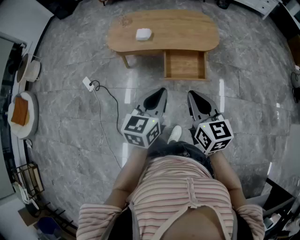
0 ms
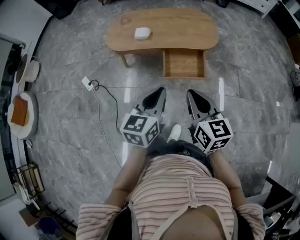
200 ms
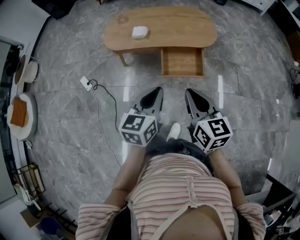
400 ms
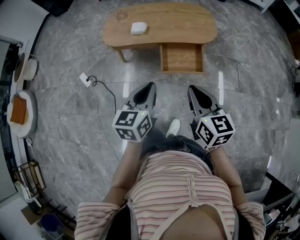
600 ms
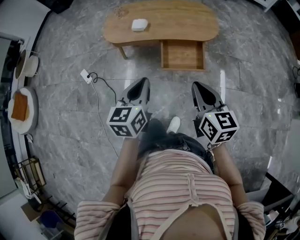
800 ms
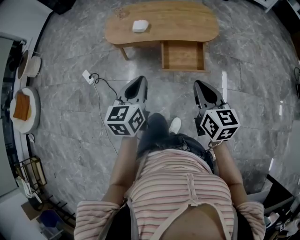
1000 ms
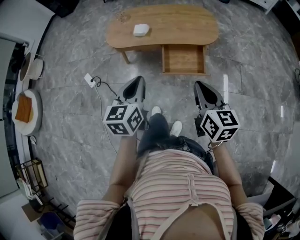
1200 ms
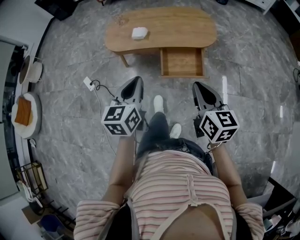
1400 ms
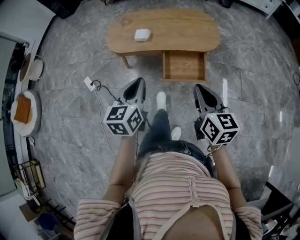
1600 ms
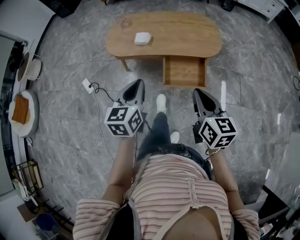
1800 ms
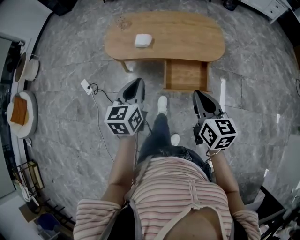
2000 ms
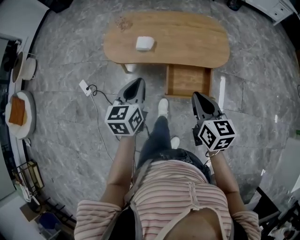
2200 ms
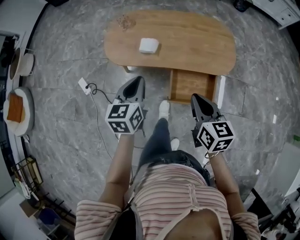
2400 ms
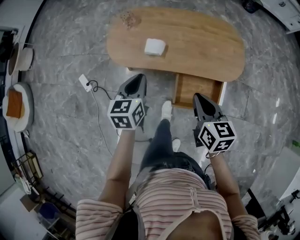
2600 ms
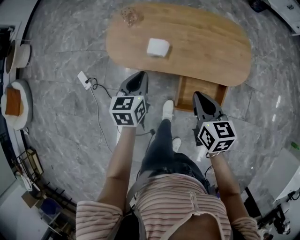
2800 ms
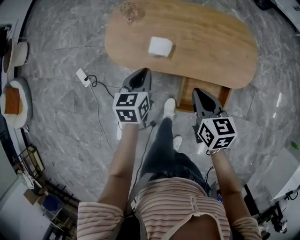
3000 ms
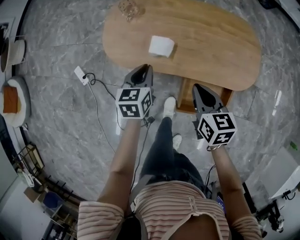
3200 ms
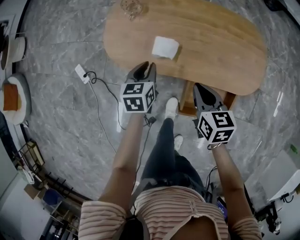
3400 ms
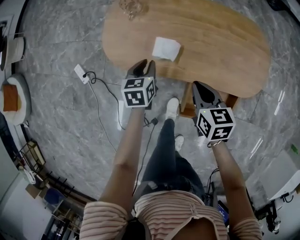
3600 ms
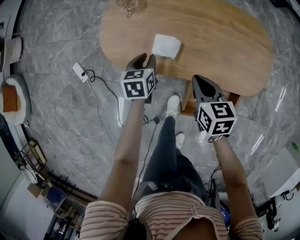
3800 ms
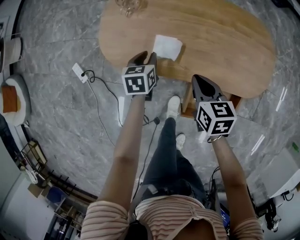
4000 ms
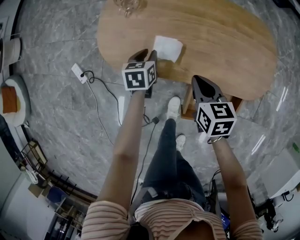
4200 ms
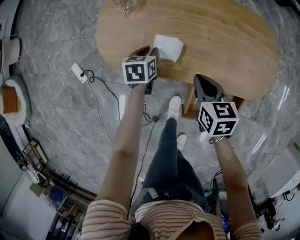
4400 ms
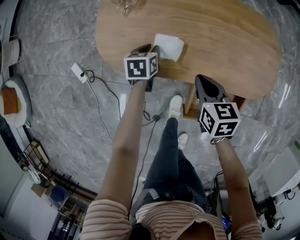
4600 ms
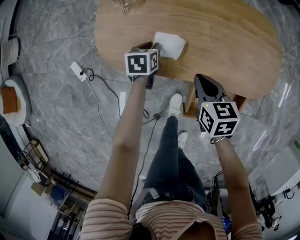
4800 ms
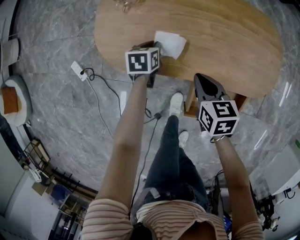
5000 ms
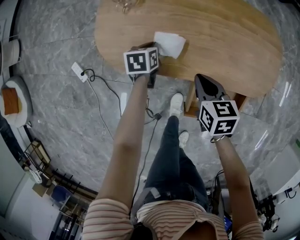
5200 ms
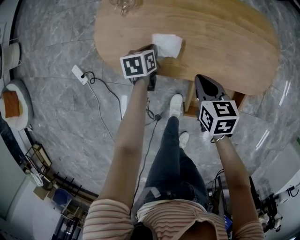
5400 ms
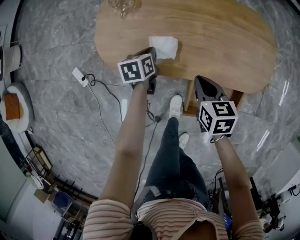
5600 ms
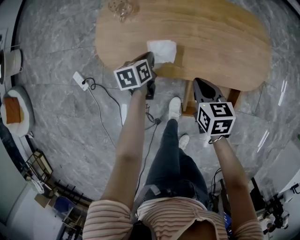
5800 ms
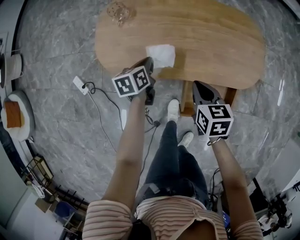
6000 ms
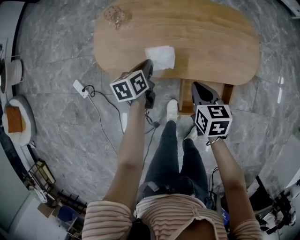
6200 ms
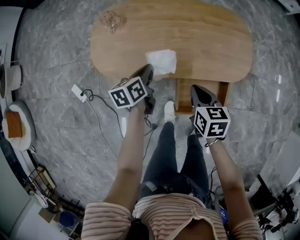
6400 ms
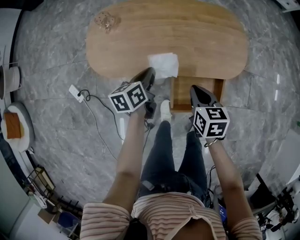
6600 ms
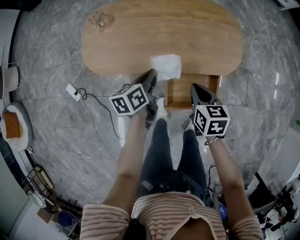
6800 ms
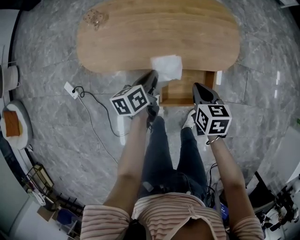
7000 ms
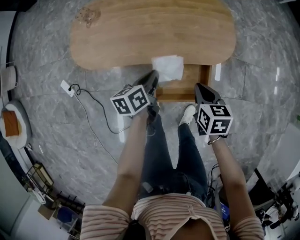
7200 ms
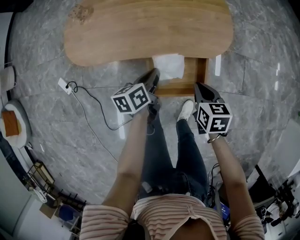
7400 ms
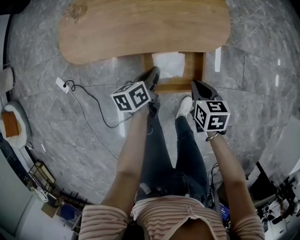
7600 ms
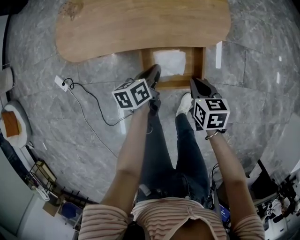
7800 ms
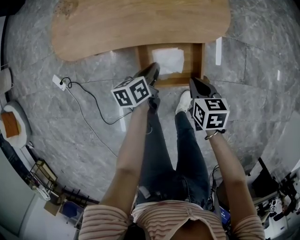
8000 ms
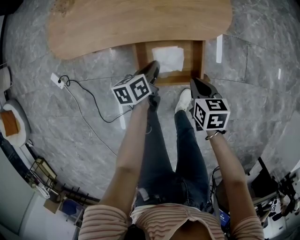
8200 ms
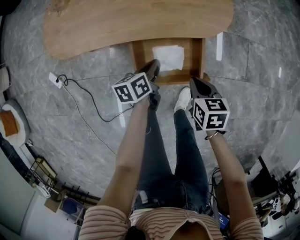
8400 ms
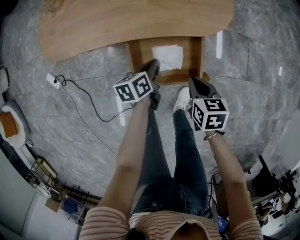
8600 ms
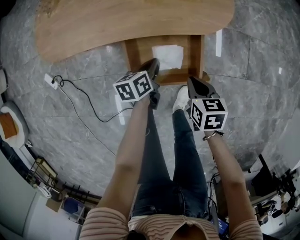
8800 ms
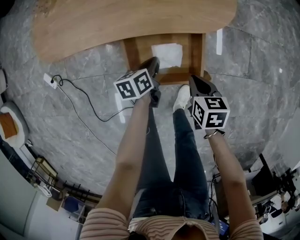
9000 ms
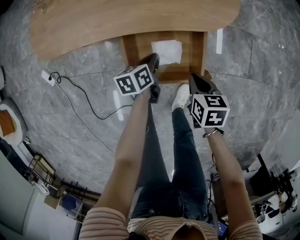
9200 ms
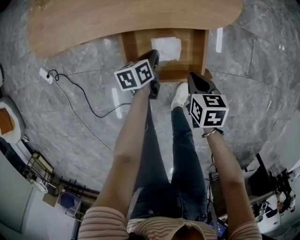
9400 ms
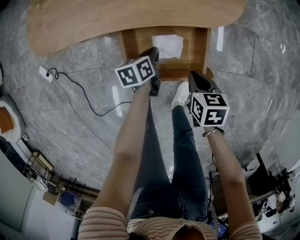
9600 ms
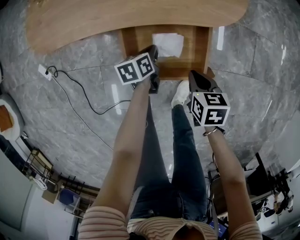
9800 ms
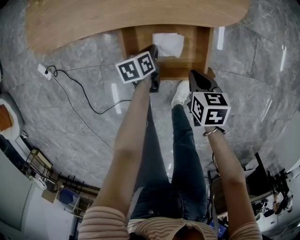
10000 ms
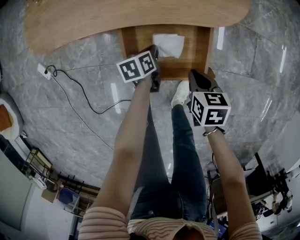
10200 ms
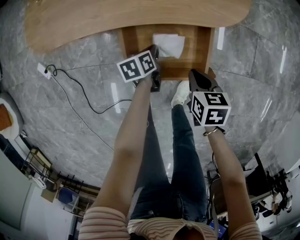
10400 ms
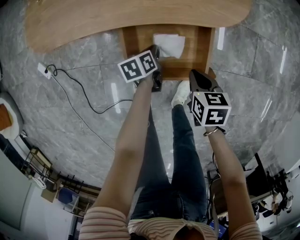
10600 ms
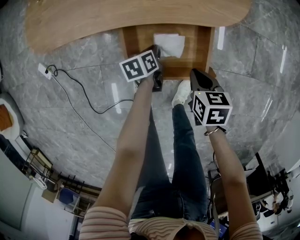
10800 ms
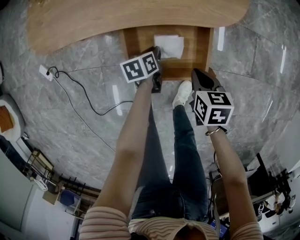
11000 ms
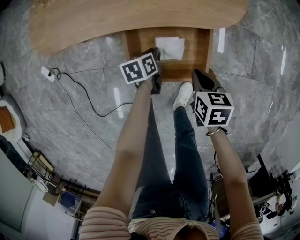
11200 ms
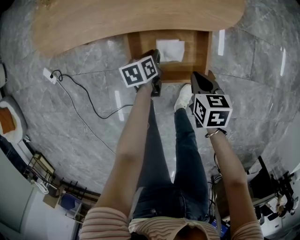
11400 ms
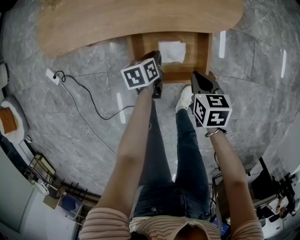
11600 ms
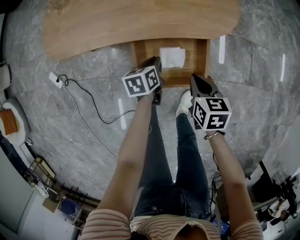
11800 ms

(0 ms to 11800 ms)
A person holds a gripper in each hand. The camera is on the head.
0 ms - 1400 ms: The right gripper is displaced to the right by roughly 5 cm, while the left gripper moves about 5 cm.
1400 ms - 3000 ms: Both grippers are carried forward, roughly 40 cm. The right gripper rotates some 20 degrees, while the left gripper travels downward by some 20 cm.
3000 ms - 4400 ms: The two grippers go about 20 cm downward and forward.
4400 ms - 6000 ms: The left gripper travels upward by some 5 cm. Meanwhile the right gripper moves backward, roughly 5 cm.
6000 ms - 7400 ms: The two grippers go about 30 cm to the right and backward.
7400 ms - 8800 ms: The left gripper goes roughly 20 cm downward and to the right, while the right gripper travels downward by roughly 15 cm.
8800 ms - 10400 ms: The right gripper heads downward, covering about 5 cm. The left gripper travels downward by some 10 cm.
10400 ms - 11800 ms: Both grippers move upward, approximately 10 cm.

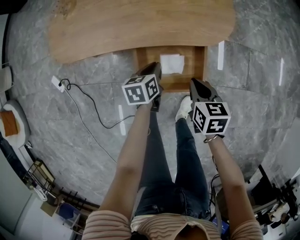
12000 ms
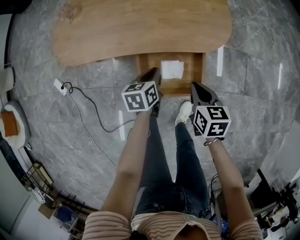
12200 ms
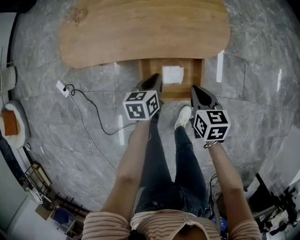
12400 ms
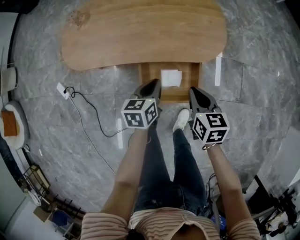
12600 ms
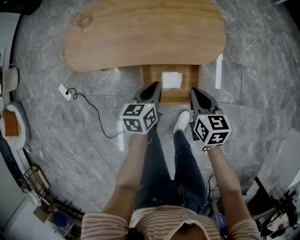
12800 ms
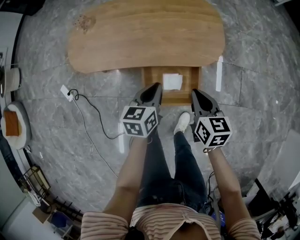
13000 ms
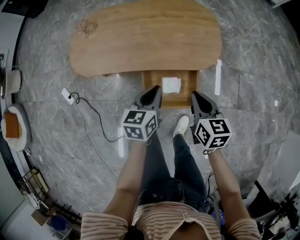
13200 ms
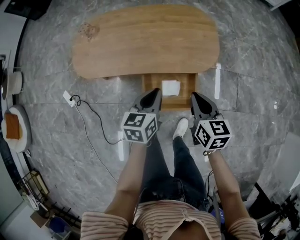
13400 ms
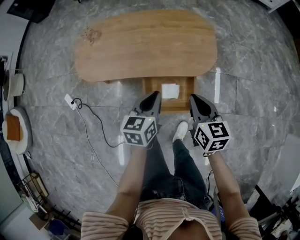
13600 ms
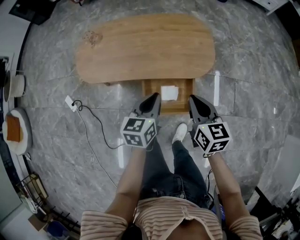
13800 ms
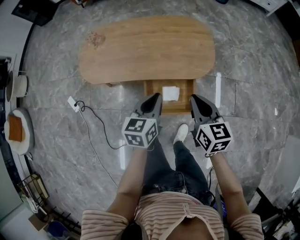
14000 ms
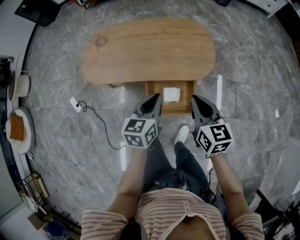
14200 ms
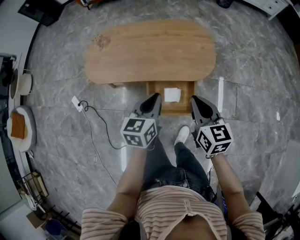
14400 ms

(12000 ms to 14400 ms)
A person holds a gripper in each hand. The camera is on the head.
12000 ms - 13200 ms: Both grippers travel together upward, about 20 cm. The left gripper changes its angle by approximately 20 degrees.
13200 ms - 14400 ms: The two grippers go approximately 10 cm upward.

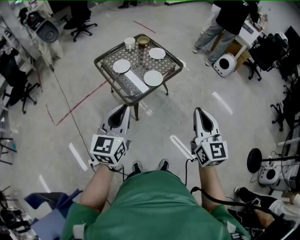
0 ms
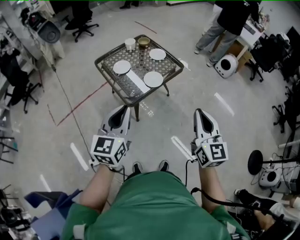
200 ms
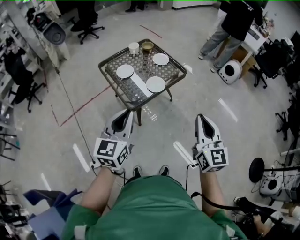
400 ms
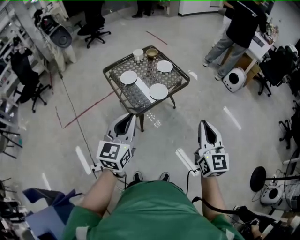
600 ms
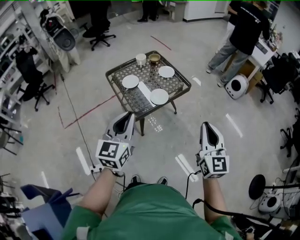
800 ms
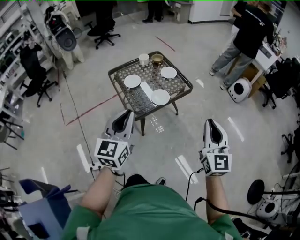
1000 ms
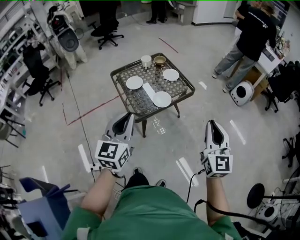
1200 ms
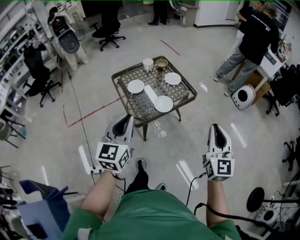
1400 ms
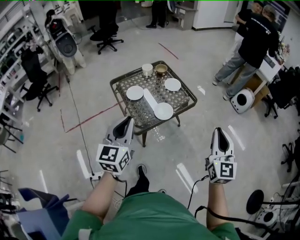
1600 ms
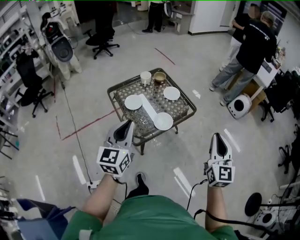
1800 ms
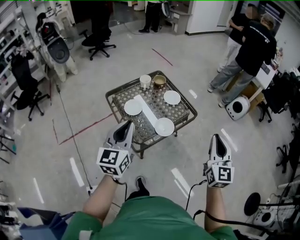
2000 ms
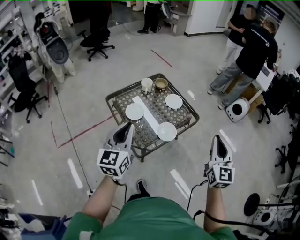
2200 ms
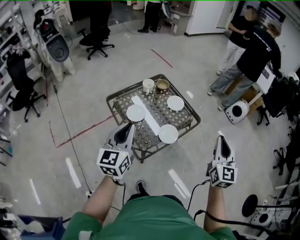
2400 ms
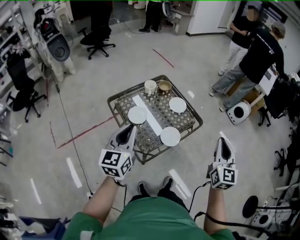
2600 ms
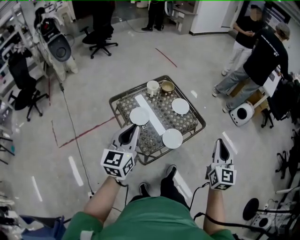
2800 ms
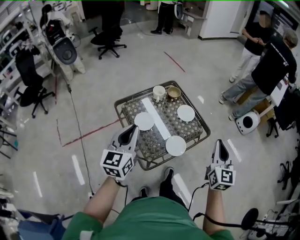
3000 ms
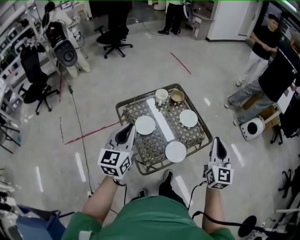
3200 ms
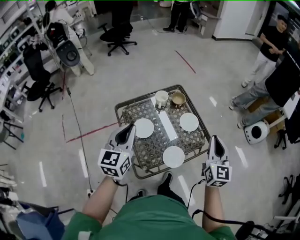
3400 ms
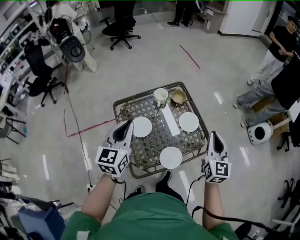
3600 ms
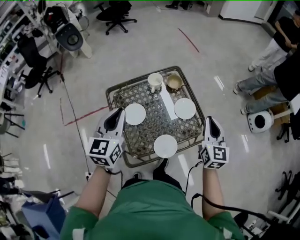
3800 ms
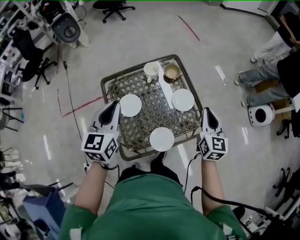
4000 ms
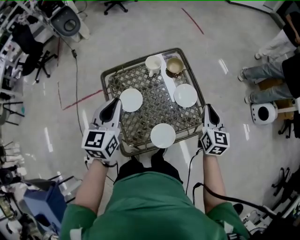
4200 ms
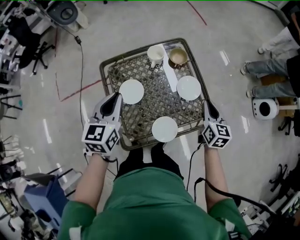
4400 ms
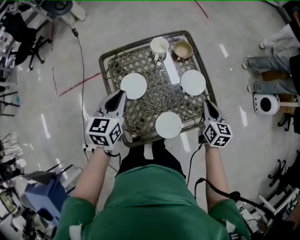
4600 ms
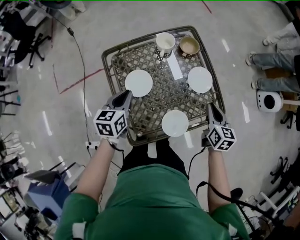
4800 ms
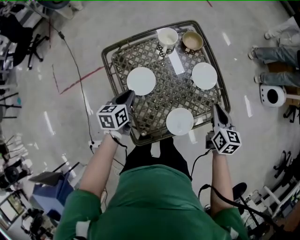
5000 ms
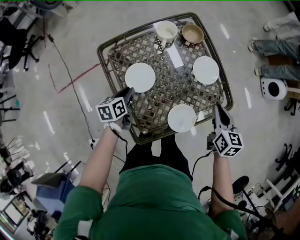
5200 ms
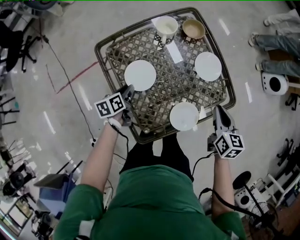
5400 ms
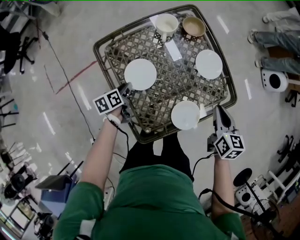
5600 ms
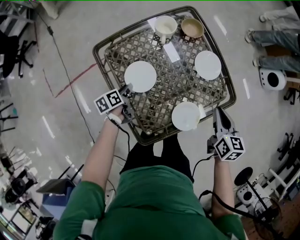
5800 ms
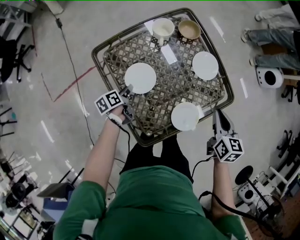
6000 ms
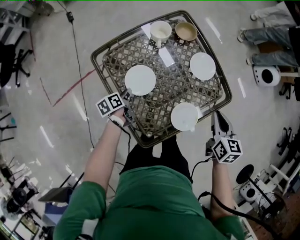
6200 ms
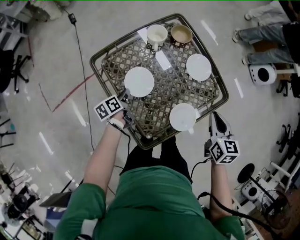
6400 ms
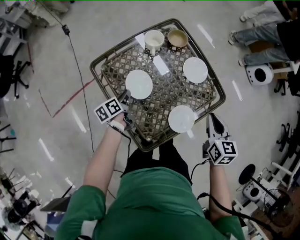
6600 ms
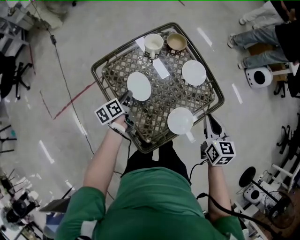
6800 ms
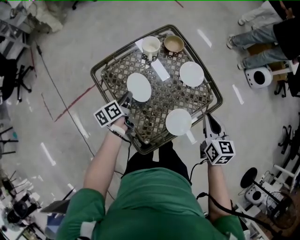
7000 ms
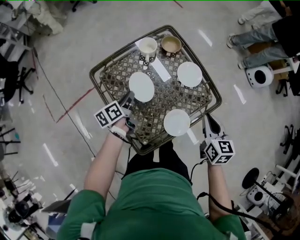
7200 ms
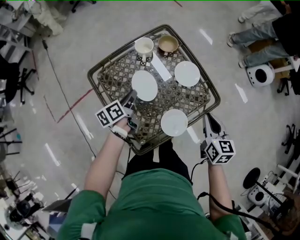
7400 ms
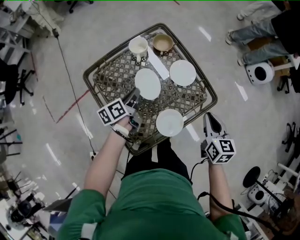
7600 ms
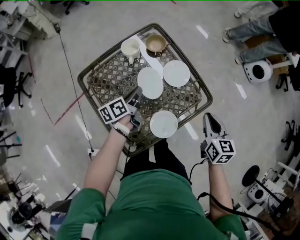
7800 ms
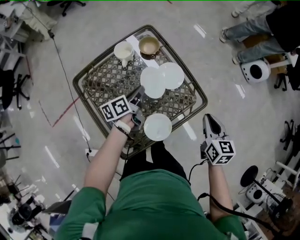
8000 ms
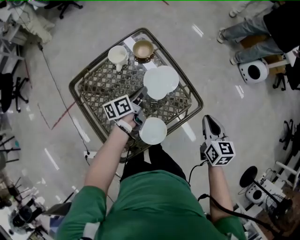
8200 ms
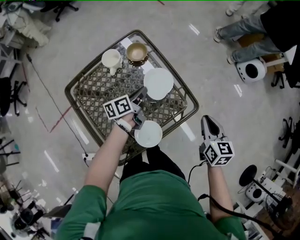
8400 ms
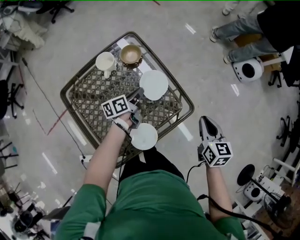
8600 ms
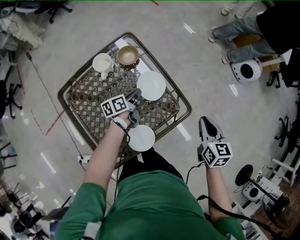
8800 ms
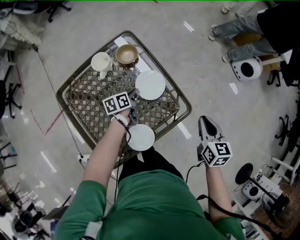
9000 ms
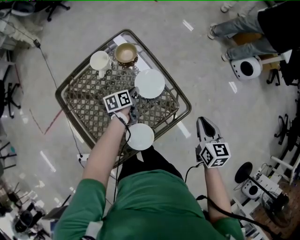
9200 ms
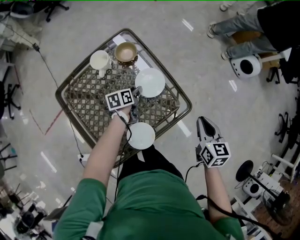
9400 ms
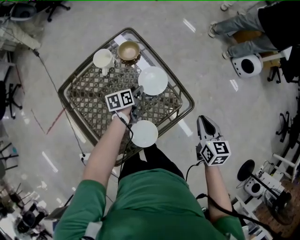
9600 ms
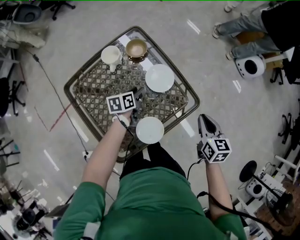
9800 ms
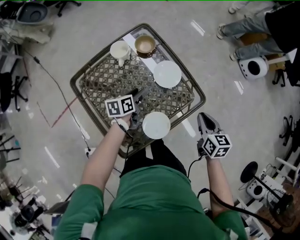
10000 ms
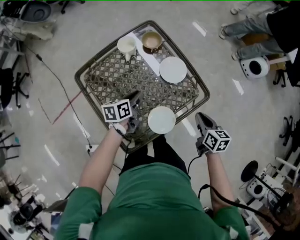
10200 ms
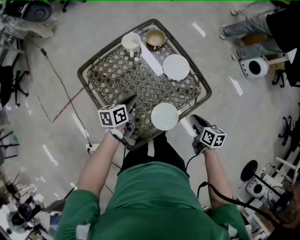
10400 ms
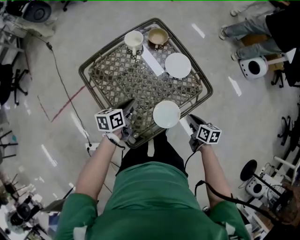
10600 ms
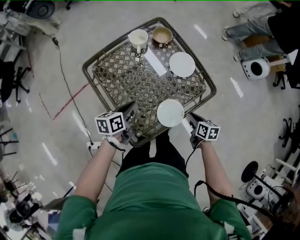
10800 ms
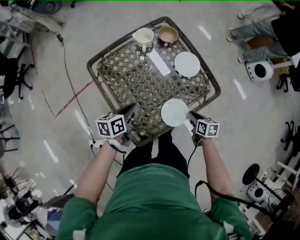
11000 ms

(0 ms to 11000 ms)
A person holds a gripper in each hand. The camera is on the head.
0 ms - 1600 ms: The right gripper moves forward and to the right, about 15 cm. Meanwhile the left gripper moves forward, some 10 cm.
1600 ms - 3200 ms: The grippers both shift forward and to the left by approximately 30 cm.
3200 ms - 4800 ms: The grippers both shift downward and forward by about 30 cm. The left gripper turns by some 30 degrees. The right gripper tilts its fingers about 30 degrees downward.
4800 ms - 6200 ms: The left gripper heads downward, covering about 20 cm, swivels some 40 degrees, and opens, then closes again; the right gripper goes some 10 cm backward.
6200 ms - 7800 ms: The right gripper travels to the right by about 10 cm. The left gripper heads to the right, upward and forward, covering roughly 25 cm, and swivels about 20 degrees.
7800 ms - 9400 ms: The left gripper is displaced downward, forward and to the right by some 20 cm, rotates approximately 20 degrees, and opens up. The right gripper shifts roughly 10 cm to the right and forward.
9400 ms - 11000 ms: The left gripper heads backward, to the left and upward, covering about 30 cm, and closes. The right gripper goes about 25 cm downward, to the left and backward, and changes its angle by approximately 30 degrees.
